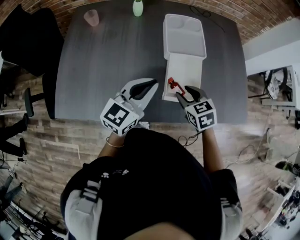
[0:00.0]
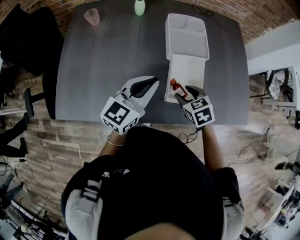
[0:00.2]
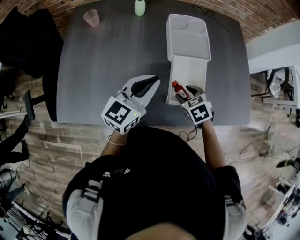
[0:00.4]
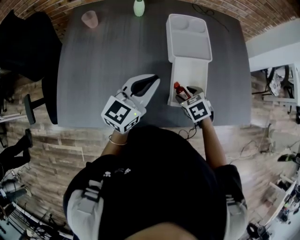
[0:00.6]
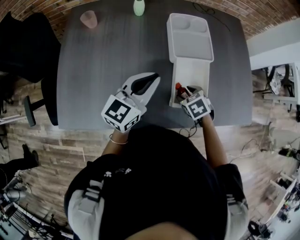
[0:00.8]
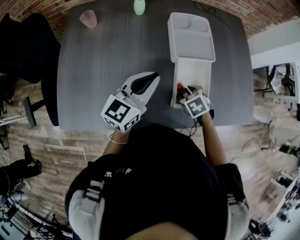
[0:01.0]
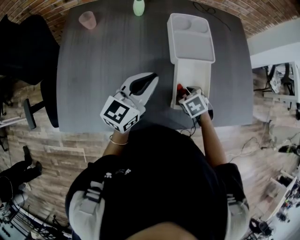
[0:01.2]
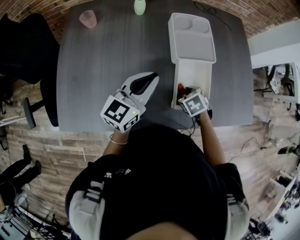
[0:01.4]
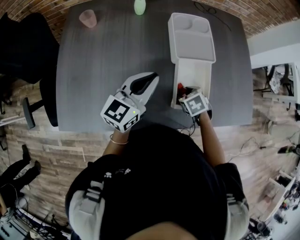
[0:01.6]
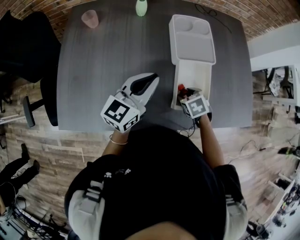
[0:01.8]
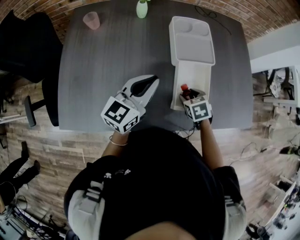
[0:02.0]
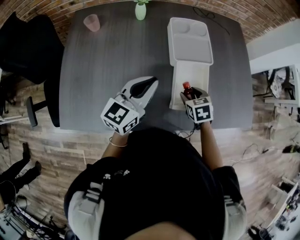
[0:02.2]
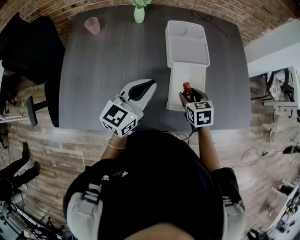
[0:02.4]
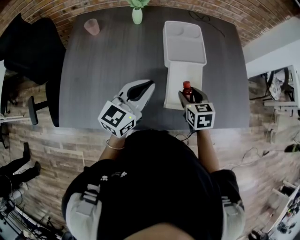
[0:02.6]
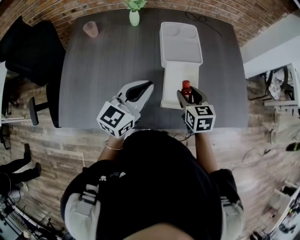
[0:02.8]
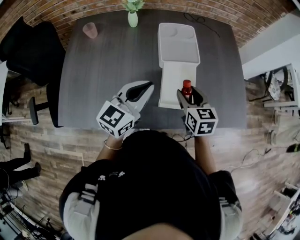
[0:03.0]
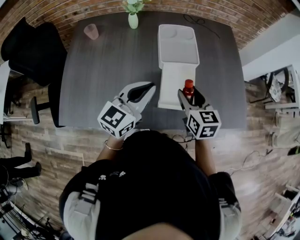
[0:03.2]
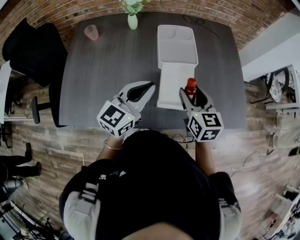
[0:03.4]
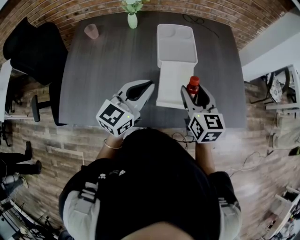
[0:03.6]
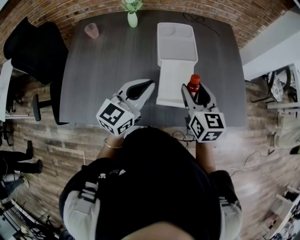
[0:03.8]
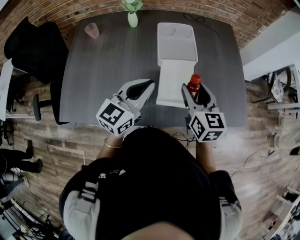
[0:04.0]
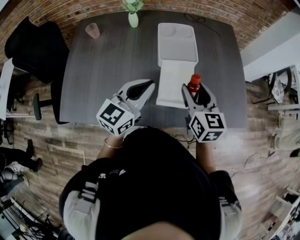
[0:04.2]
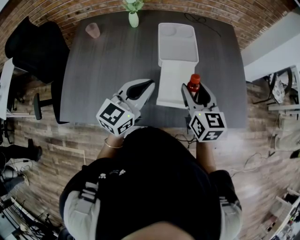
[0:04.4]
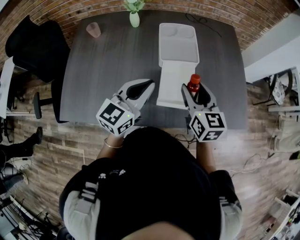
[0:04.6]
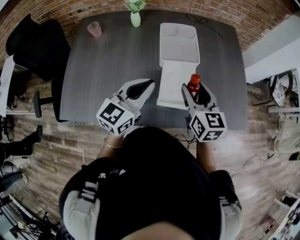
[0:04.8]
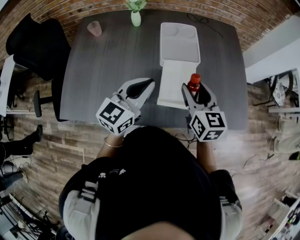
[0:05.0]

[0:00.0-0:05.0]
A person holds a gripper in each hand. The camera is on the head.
0:00.0 to 0:01.6: The right gripper moves downward, approximately 10 cm, and turns by roughly 20 degrees; the left gripper goes about 10 cm forward and to the left.
0:01.6 to 0:03.4: The left gripper moves to the right, upward and backward, approximately 10 cm, while the right gripper moves upward, some 20 cm, and angles its fingers upward, by some 50 degrees.
0:03.4 to 0:05.0: There are only small adjustments of the grippers.

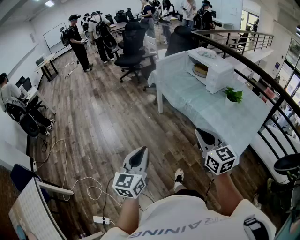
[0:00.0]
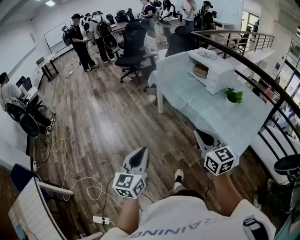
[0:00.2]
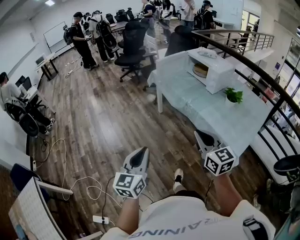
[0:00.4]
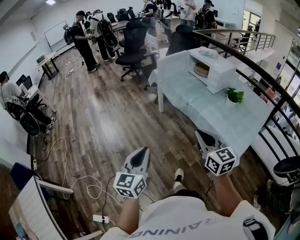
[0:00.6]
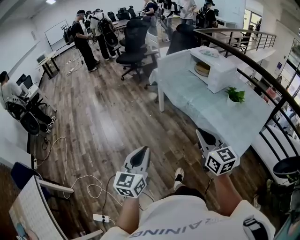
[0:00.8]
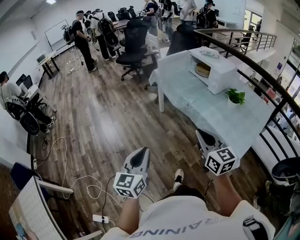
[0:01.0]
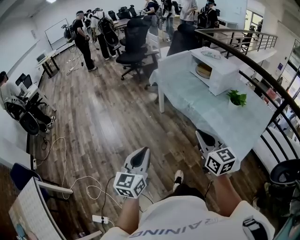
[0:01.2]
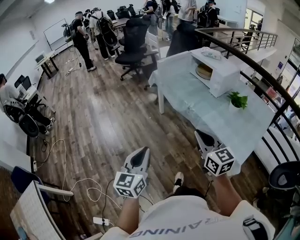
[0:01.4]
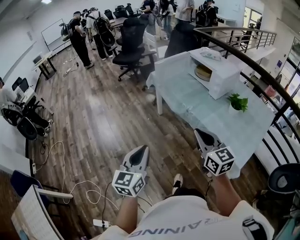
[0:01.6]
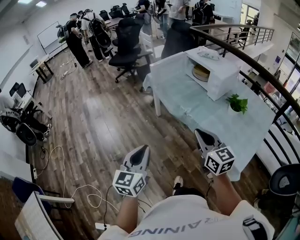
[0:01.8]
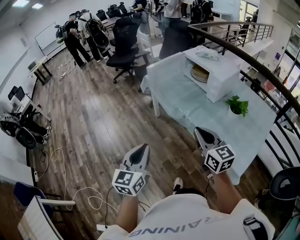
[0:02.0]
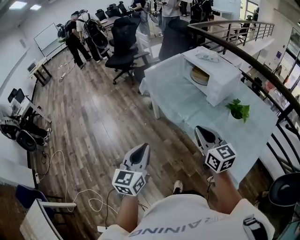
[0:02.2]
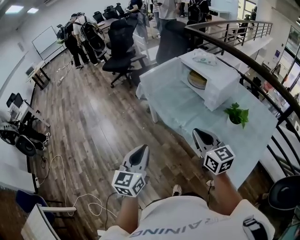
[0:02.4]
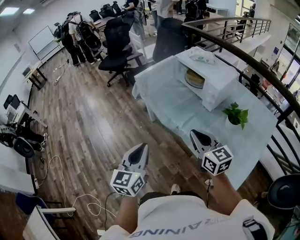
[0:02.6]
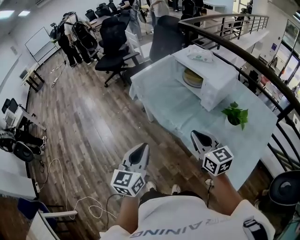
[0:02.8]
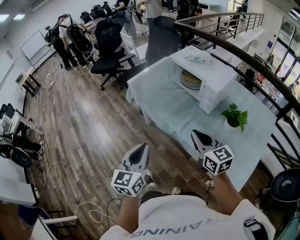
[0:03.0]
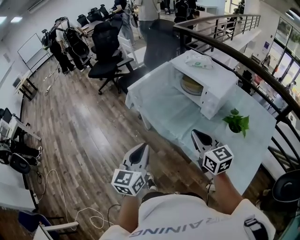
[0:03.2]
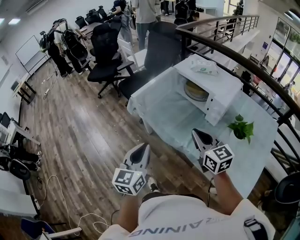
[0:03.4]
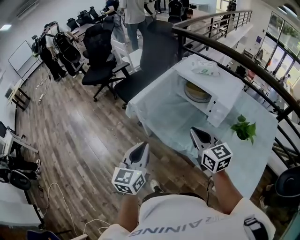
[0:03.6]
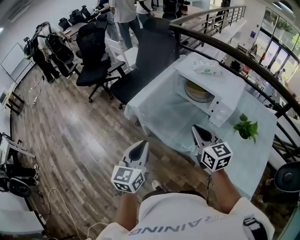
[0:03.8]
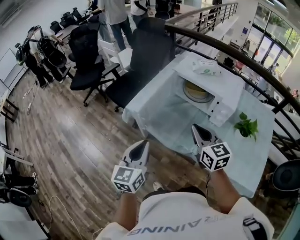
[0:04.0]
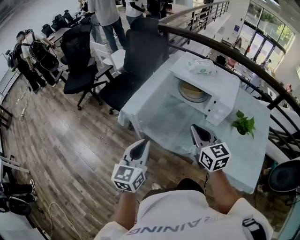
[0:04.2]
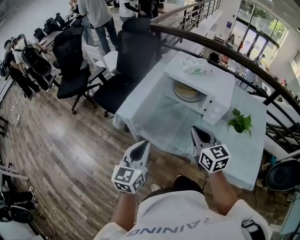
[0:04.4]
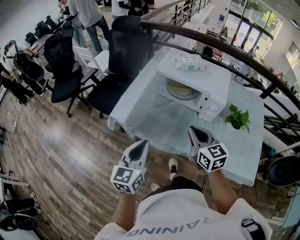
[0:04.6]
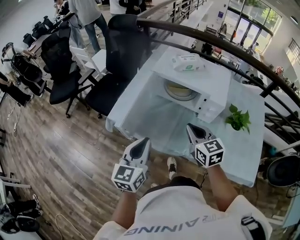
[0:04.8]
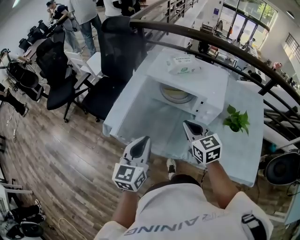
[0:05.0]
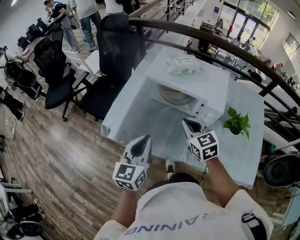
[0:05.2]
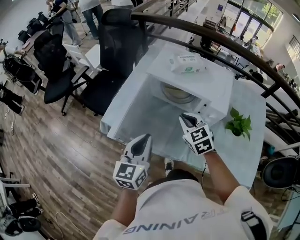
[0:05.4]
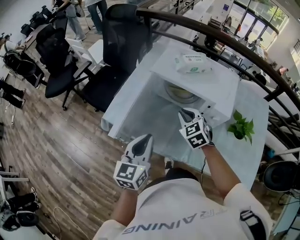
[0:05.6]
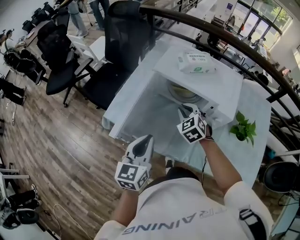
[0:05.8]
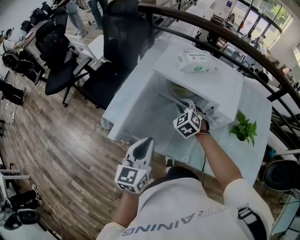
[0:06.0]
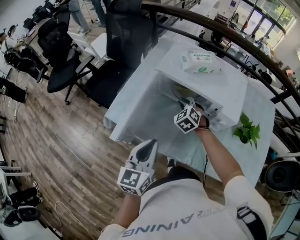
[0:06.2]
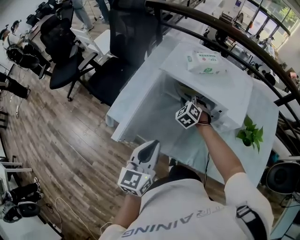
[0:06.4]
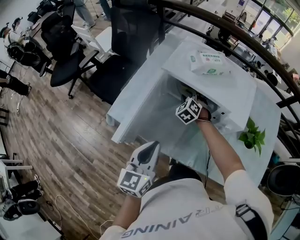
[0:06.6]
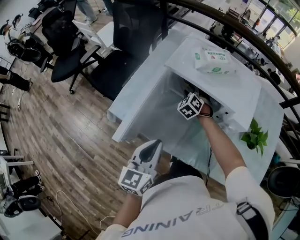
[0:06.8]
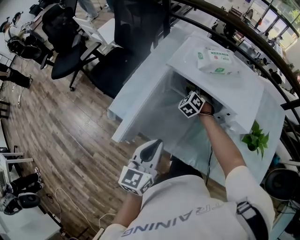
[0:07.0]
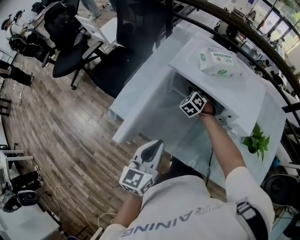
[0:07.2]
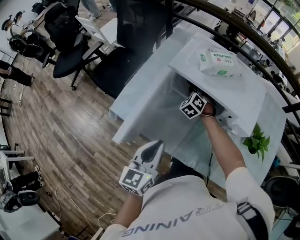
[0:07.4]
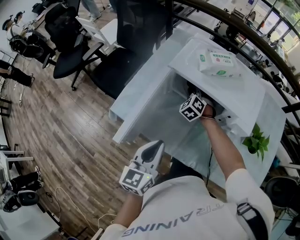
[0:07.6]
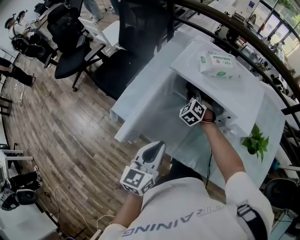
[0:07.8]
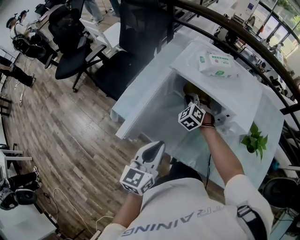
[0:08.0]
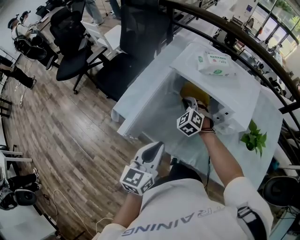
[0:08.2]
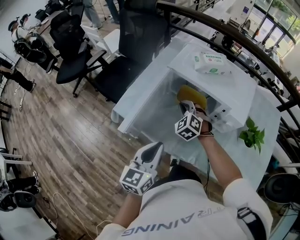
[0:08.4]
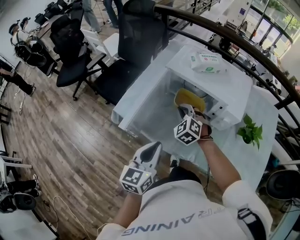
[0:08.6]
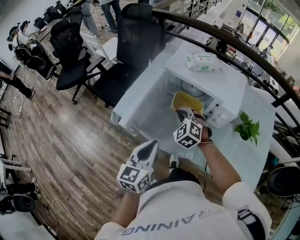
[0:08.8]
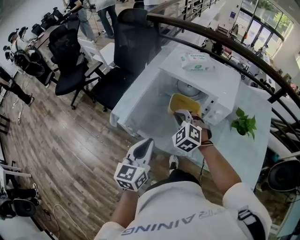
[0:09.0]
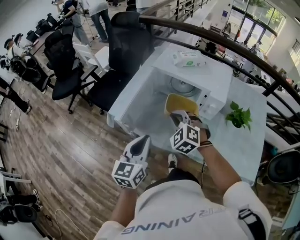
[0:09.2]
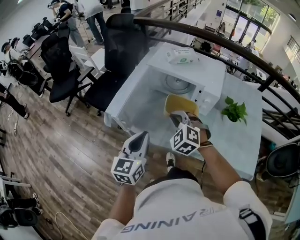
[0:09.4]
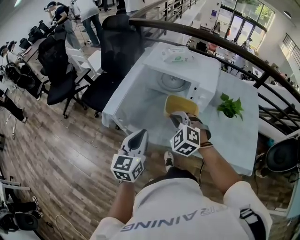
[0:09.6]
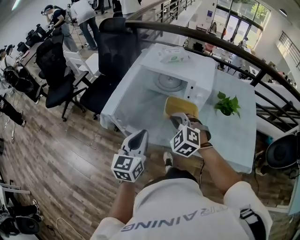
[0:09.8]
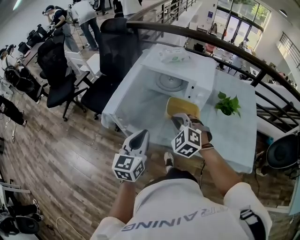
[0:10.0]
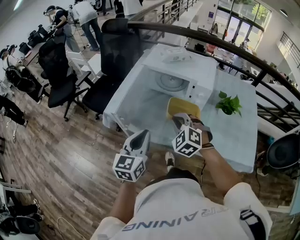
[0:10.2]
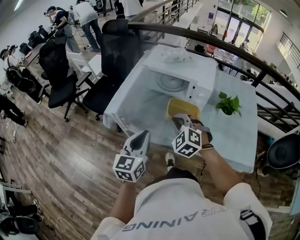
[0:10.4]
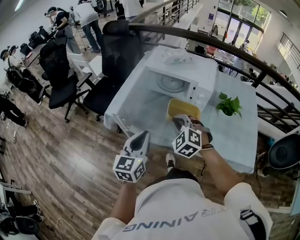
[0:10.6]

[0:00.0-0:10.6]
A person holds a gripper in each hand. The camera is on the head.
0:00.0 to 0:01.6: Both grippers travel together forward, some 10 cm.
0:01.6 to 0:03.0: Both grippers travel together forward and to the right, some 30 cm.
0:03.0 to 0:04.6: The left gripper shifts by about 30 cm, and turns by some 30 degrees. Meanwhile the right gripper ends up approximately 25 cm from where it was, and turns by some 30 degrees.
0:04.6 to 0:06.0: The left gripper travels forward by some 10 cm; the right gripper is displaced forward and downward by approximately 25 cm, and swivels roughly 50 degrees.
0:06.0 to 0:07.6: The right gripper goes approximately 15 cm forward and downward.
0:07.6 to 0:09.0: The left gripper shifts approximately 10 cm backward, while the right gripper is displaced backward and upward by roughly 30 cm.
0:09.0 to 0:10.6: The left gripper shifts some 5 cm backward; the right gripper travels backward by approximately 15 cm.

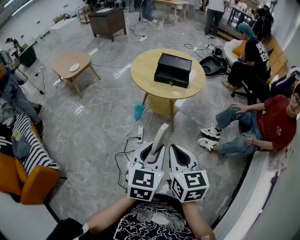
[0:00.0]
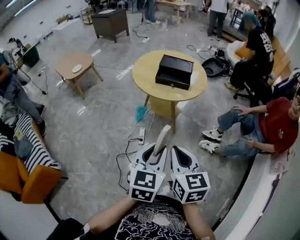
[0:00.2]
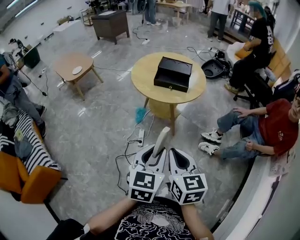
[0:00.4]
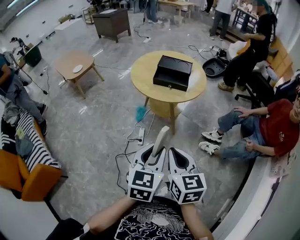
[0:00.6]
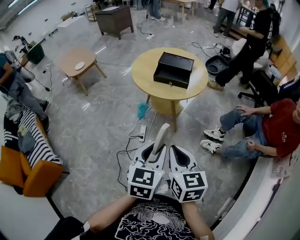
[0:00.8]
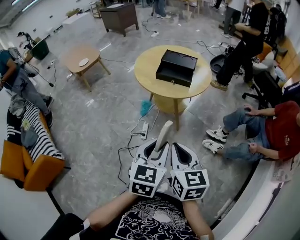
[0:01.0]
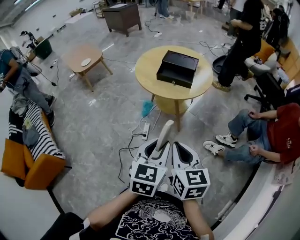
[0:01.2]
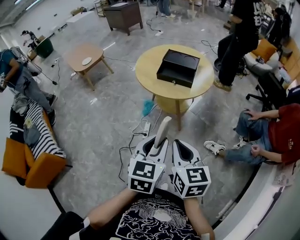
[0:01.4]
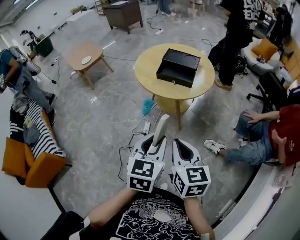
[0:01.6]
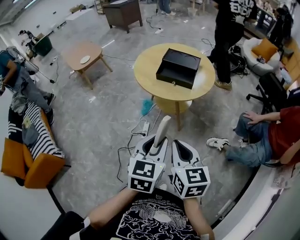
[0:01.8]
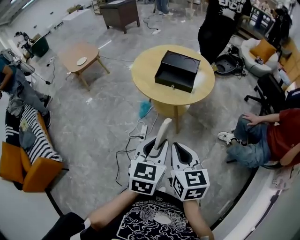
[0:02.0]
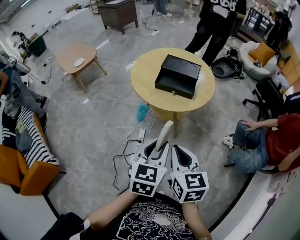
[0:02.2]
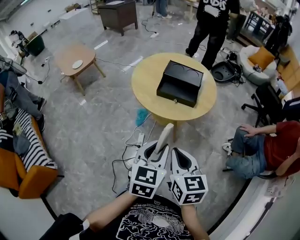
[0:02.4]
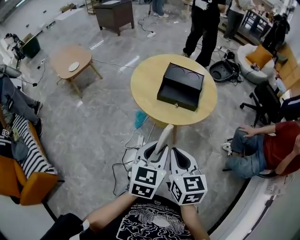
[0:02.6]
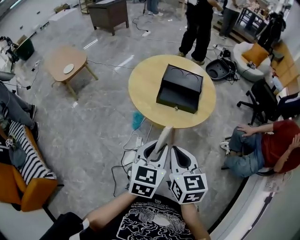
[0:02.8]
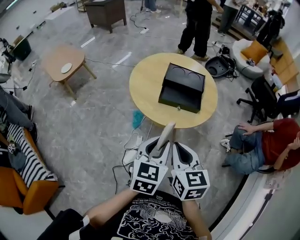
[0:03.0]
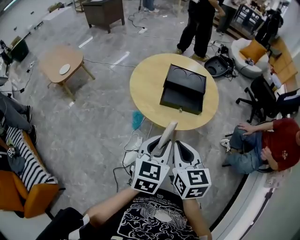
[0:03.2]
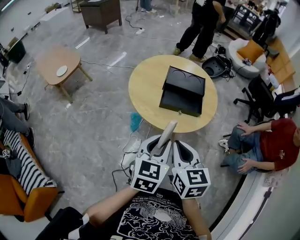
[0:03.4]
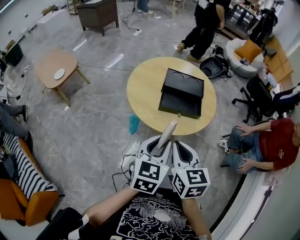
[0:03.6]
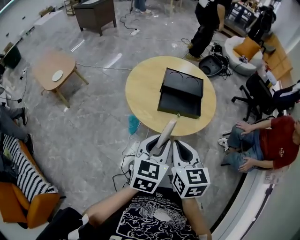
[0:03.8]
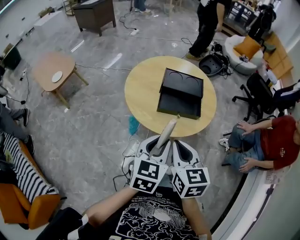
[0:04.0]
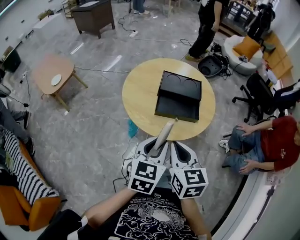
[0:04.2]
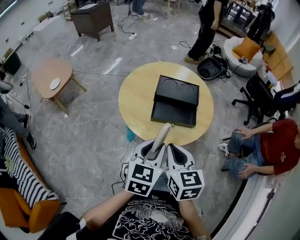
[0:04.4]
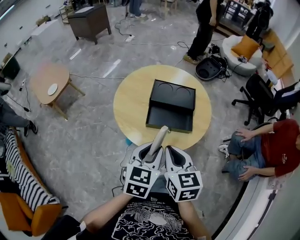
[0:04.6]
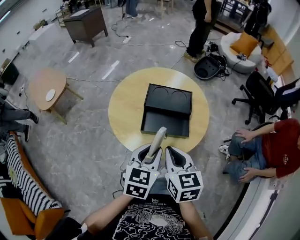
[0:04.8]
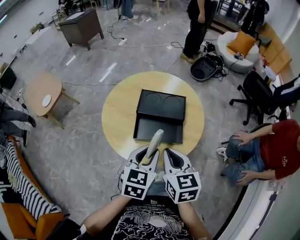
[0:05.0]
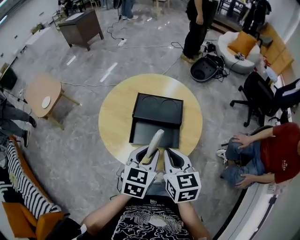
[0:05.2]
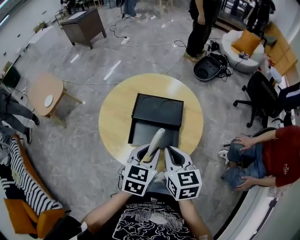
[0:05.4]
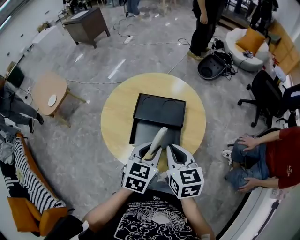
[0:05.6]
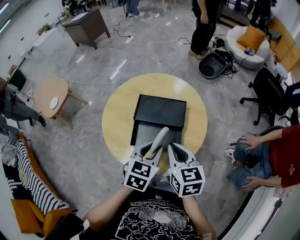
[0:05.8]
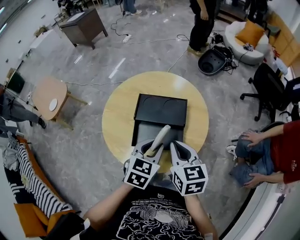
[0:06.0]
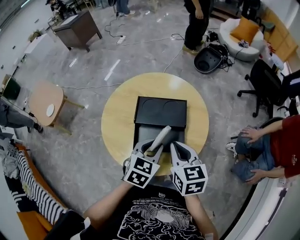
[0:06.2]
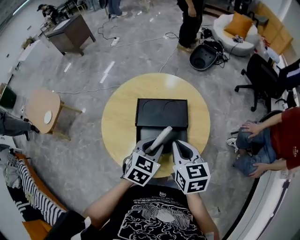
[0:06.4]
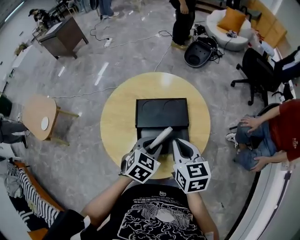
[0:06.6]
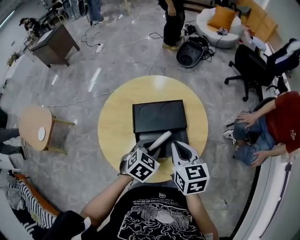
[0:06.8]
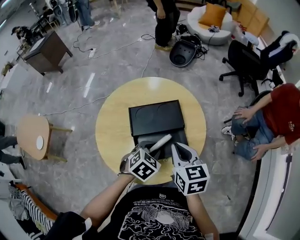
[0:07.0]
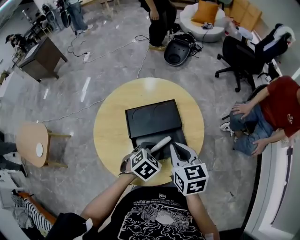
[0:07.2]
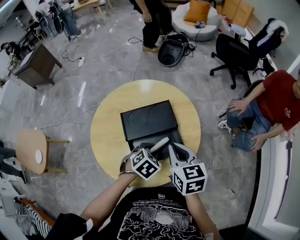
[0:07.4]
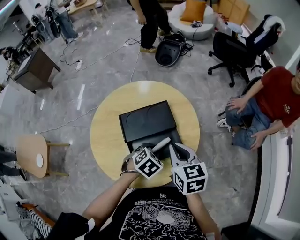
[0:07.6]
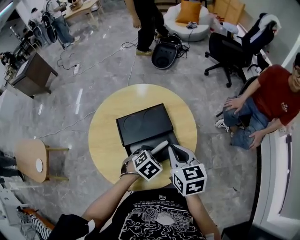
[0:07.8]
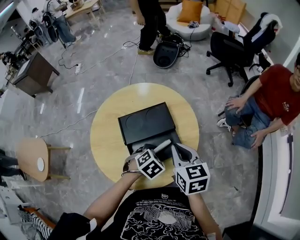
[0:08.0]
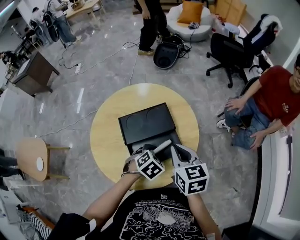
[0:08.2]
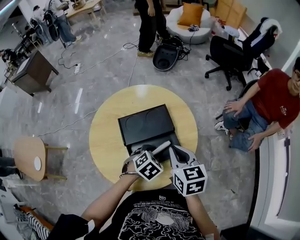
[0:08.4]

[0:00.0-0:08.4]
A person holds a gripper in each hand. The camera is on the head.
0:00.0 to 0:01.4: The grippers both shift to the right and forward by approximately 10 cm.
0:01.4 to 0:02.8: The right gripper goes some 25 cm forward and to the left. Meanwhile the left gripper goes approximately 25 cm forward.
0:02.8 to 0:04.2: The left gripper goes some 10 cm forward; the right gripper moves forward and to the left, roughly 15 cm.
0:04.2 to 0:05.6: Both grippers travel together forward and to the right, some 25 cm.
0:05.6 to 0:07.0: The left gripper goes some 10 cm downward, and swivels approximately 40 degrees, while the right gripper ends up about 5 cm from where it was, and rotates about 20 degrees.
0:07.0 to 0:08.4: The grippers move only a little.
